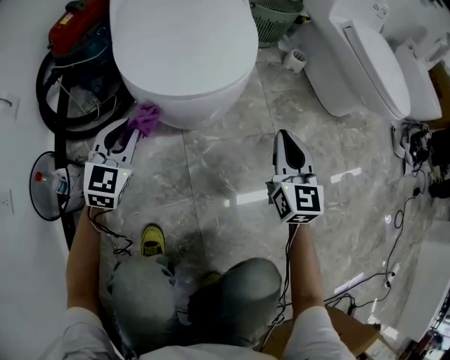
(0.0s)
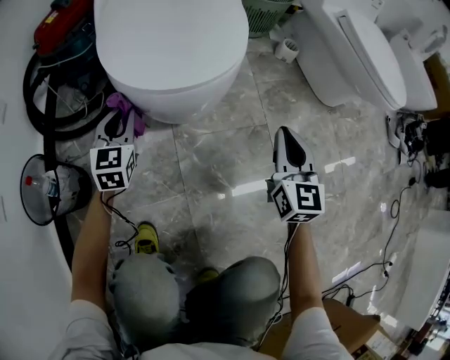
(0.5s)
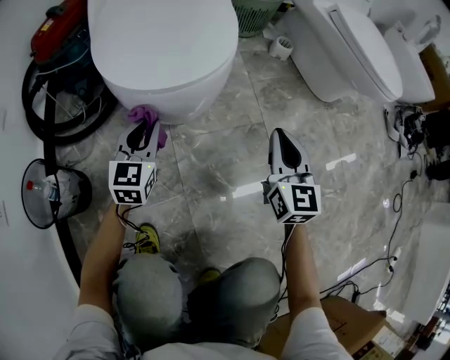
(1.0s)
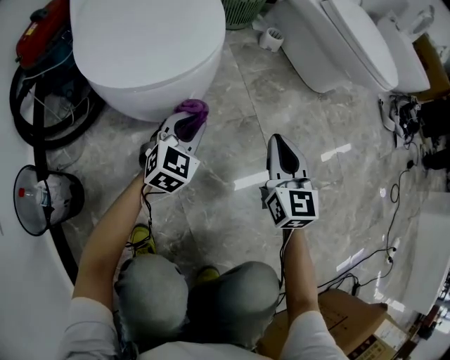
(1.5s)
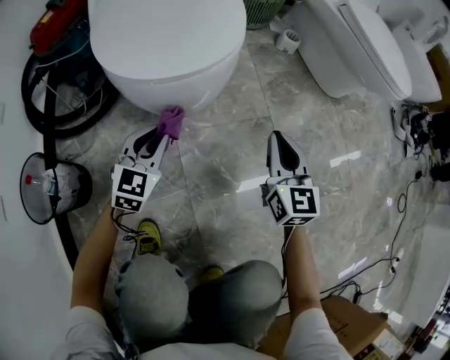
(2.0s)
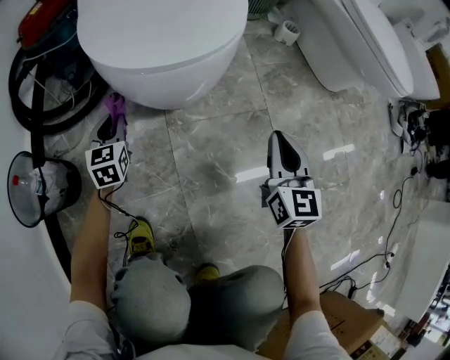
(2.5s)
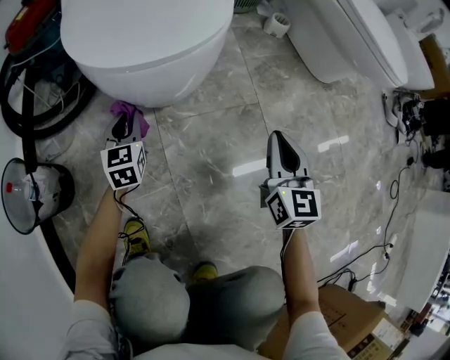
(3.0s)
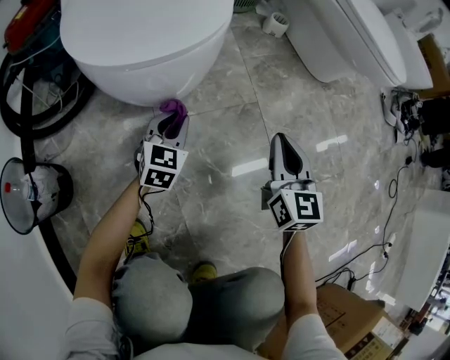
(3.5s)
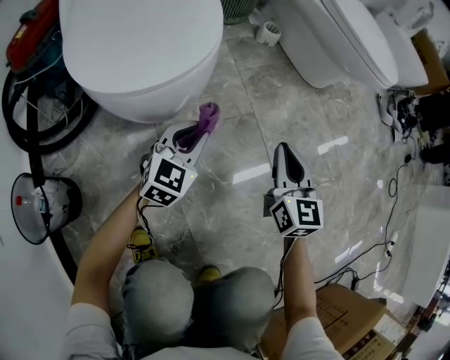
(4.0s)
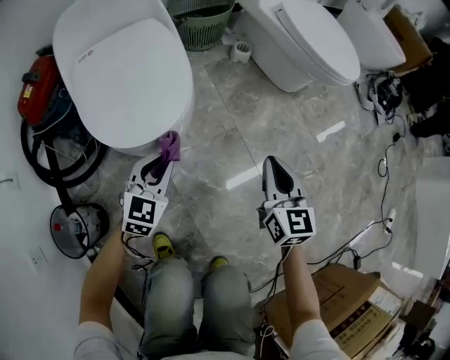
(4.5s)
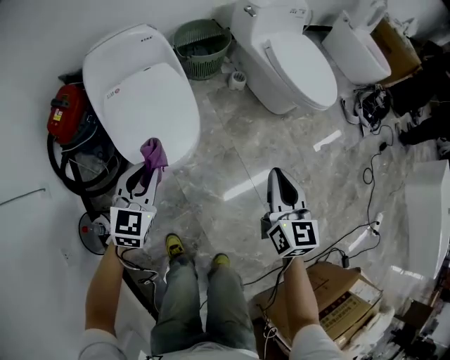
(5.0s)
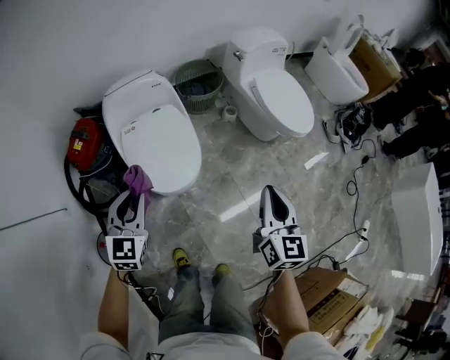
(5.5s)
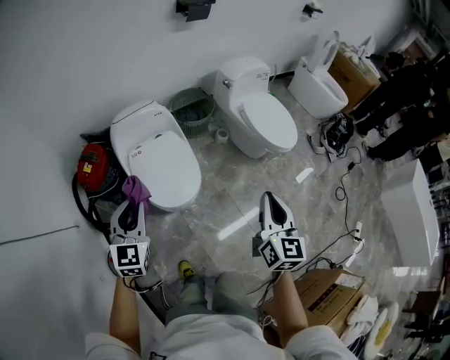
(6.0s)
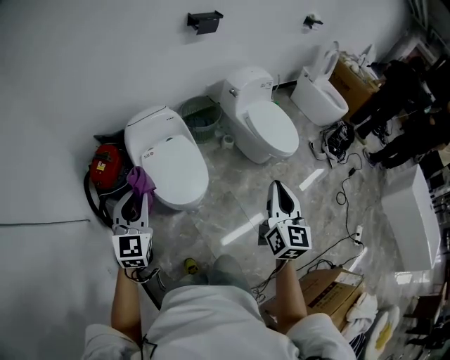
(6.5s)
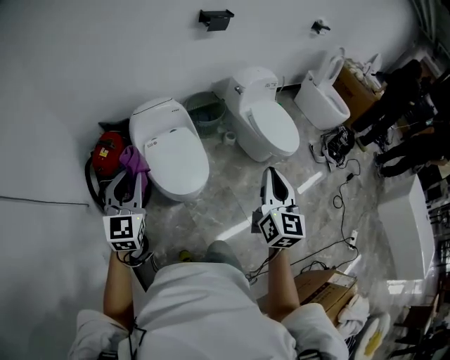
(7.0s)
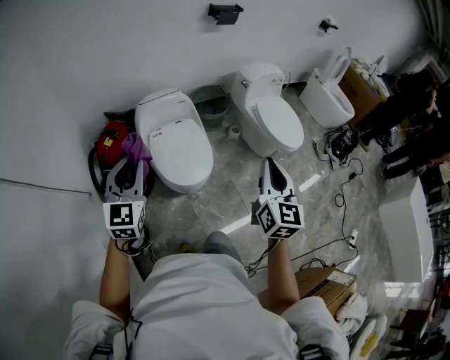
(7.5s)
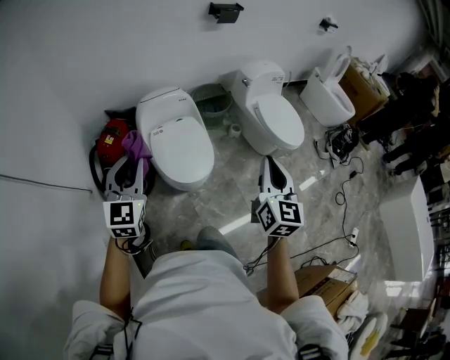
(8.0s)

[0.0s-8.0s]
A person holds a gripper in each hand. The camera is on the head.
0.0s to 2.0s: The right gripper shifts by roughly 5 cm. The left gripper goes some 15 cm to the right and downward.
2.0s to 4.0s: The left gripper goes downward and returns, about 10 cm each way. The right gripper shifts by approximately 5 cm.
4.0s to 6.0s: The two grippers go some 70 cm upward. The left gripper swivels about 20 degrees.
6.0s to 8.0s: The left gripper travels upward, backward and to the left by roughly 15 cm. Meanwhile the right gripper heads upward, to the left and backward, covering approximately 15 cm.

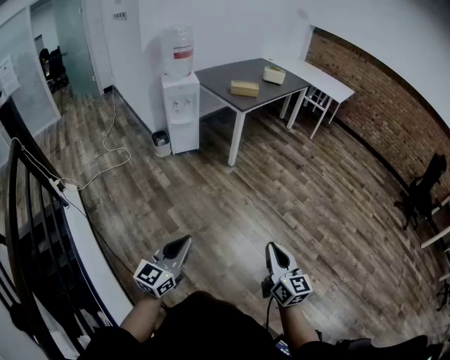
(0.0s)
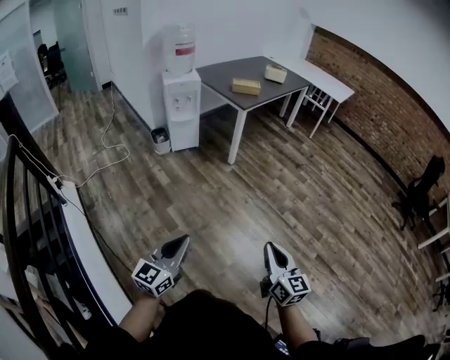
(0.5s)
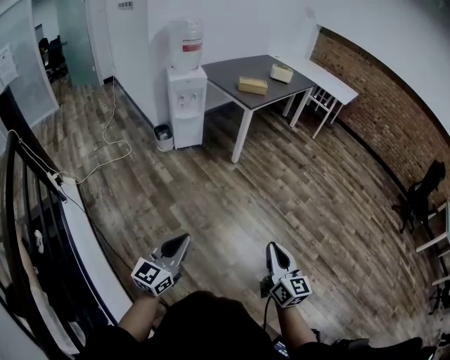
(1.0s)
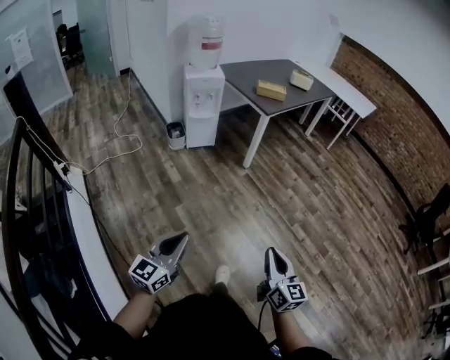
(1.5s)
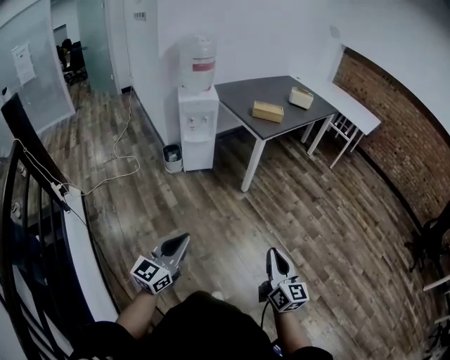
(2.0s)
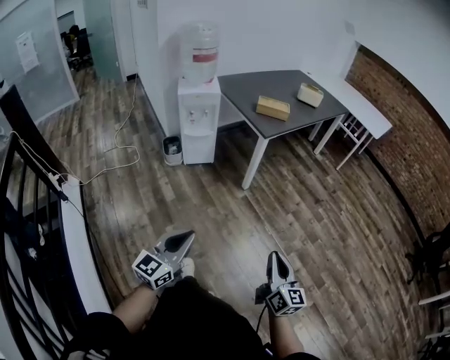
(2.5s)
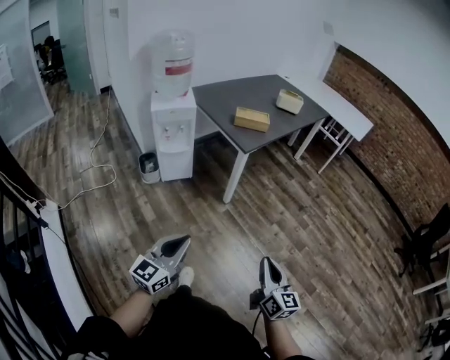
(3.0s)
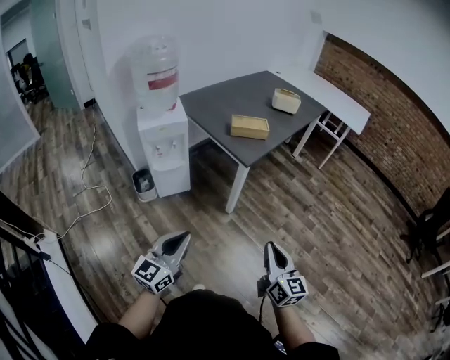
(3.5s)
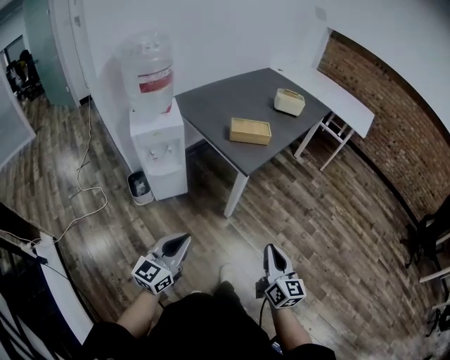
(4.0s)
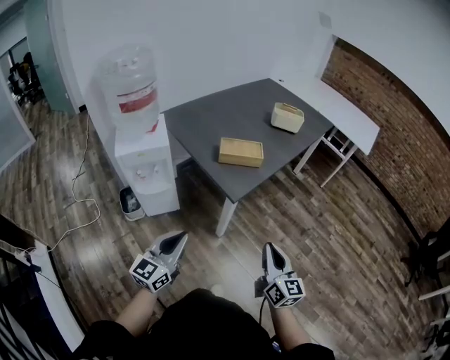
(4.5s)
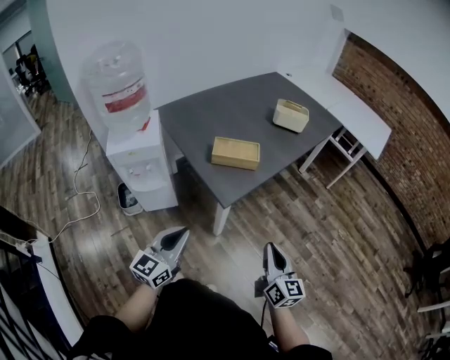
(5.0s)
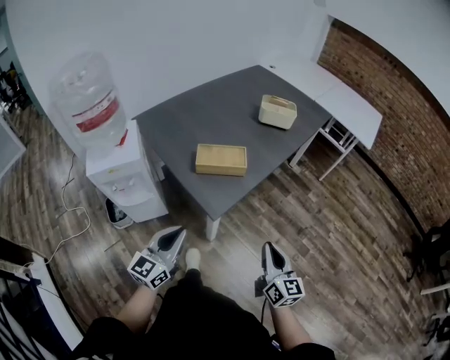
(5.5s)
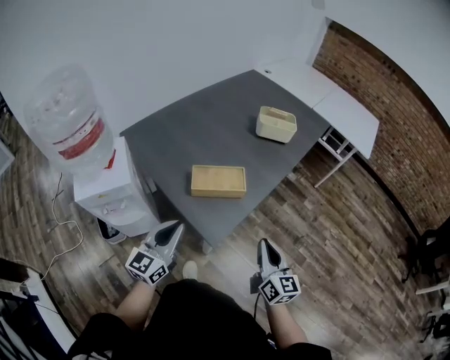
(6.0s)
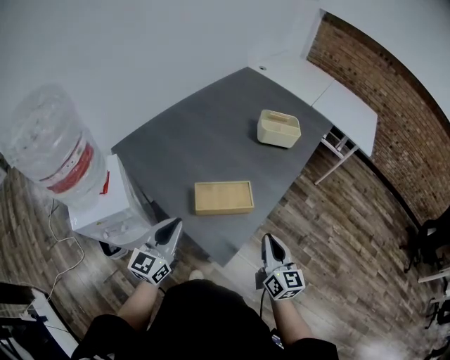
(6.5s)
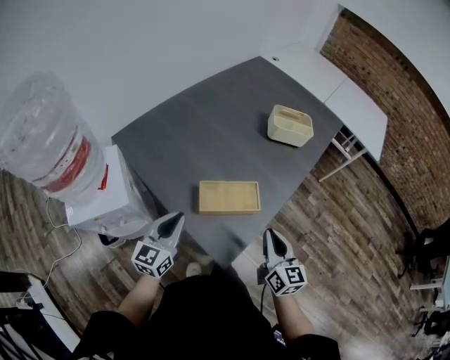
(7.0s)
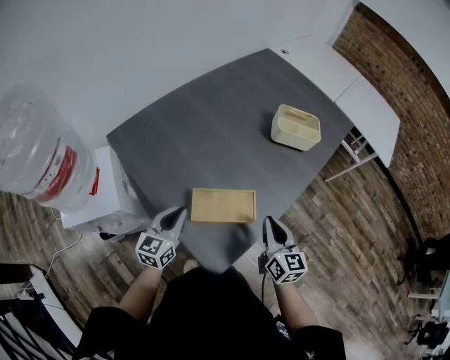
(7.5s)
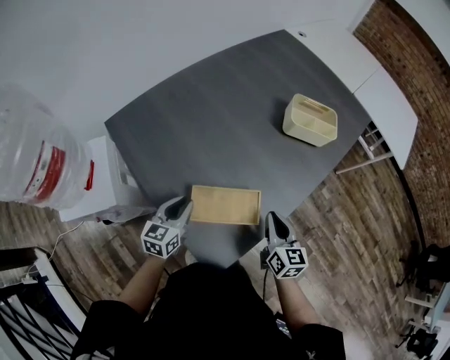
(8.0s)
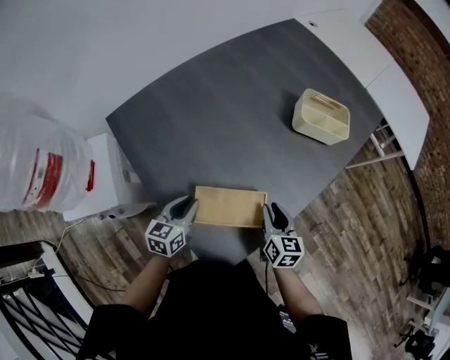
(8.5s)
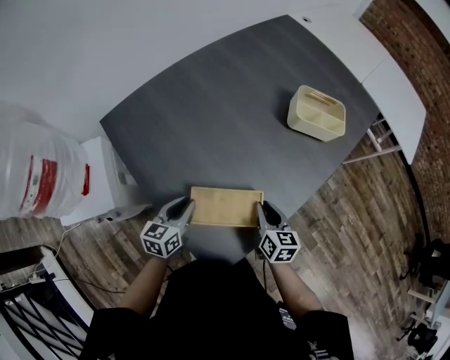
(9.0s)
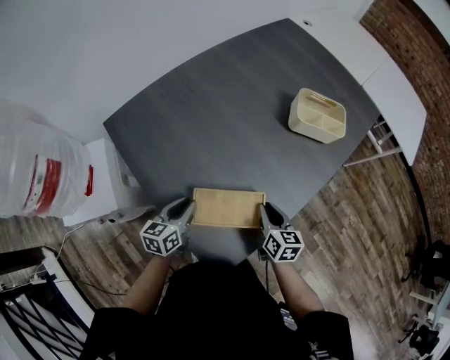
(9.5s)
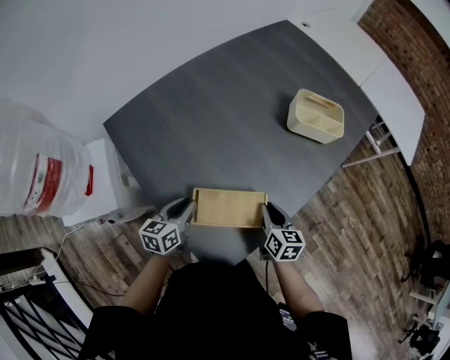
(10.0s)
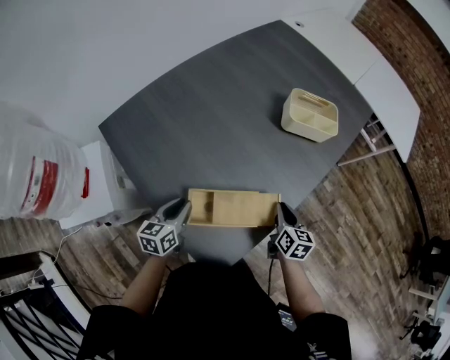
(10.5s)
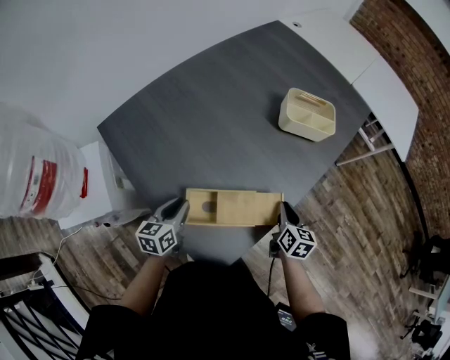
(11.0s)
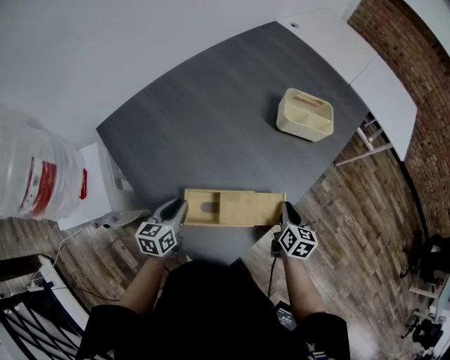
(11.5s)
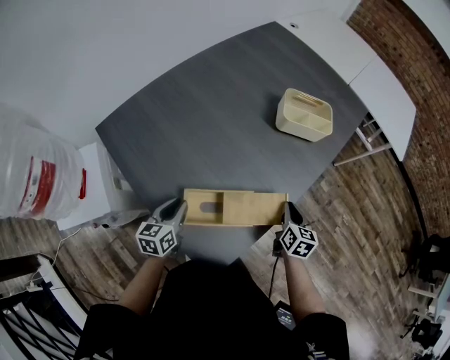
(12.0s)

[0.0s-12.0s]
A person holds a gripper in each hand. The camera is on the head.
0.0s to 2.0s: Both grippers move forward, roughly 20 cm.
2.0s to 4.0s: Both grippers move forward, approximately 35 cm.
4.0s to 6.0s: The two grippers go some 35 cm forward.
6.0s to 8.0s: The left gripper travels forward and downward by roughly 25 cm, and changes its angle by approximately 30 degrees. The right gripper is displaced forward by approximately 20 cm.
8.0s to 10.0s: The right gripper shifts some 5 cm downward.
10.0s to 12.0s: The right gripper goes about 10 cm to the right.

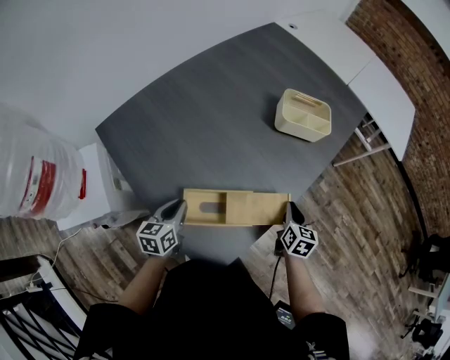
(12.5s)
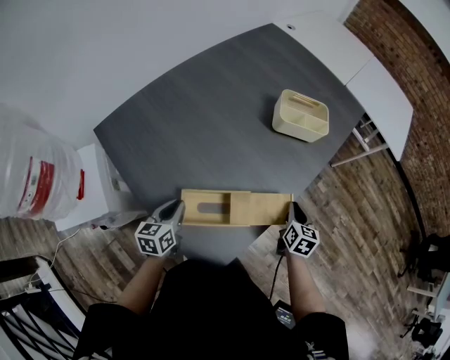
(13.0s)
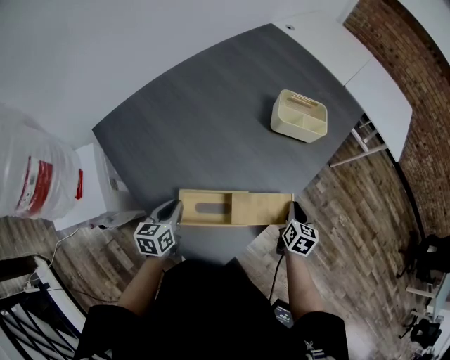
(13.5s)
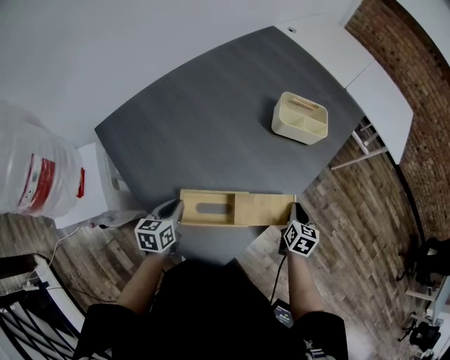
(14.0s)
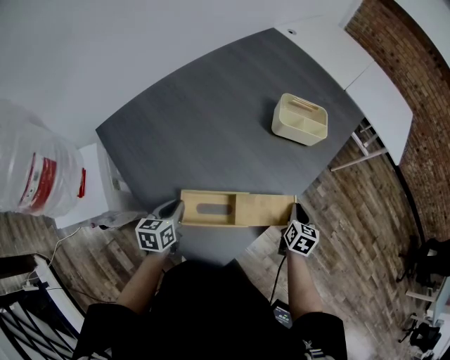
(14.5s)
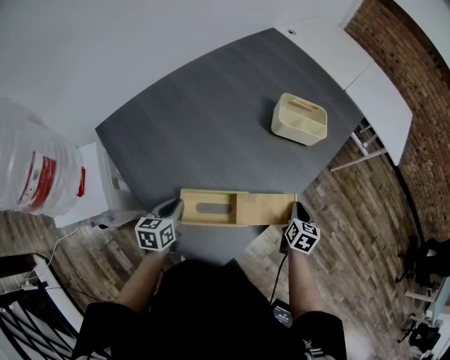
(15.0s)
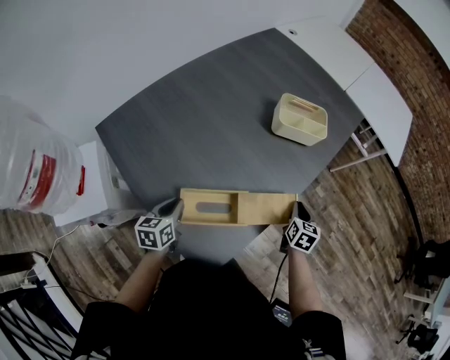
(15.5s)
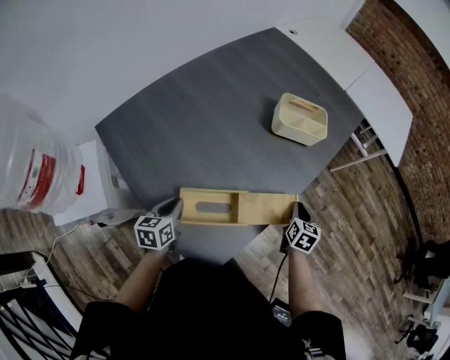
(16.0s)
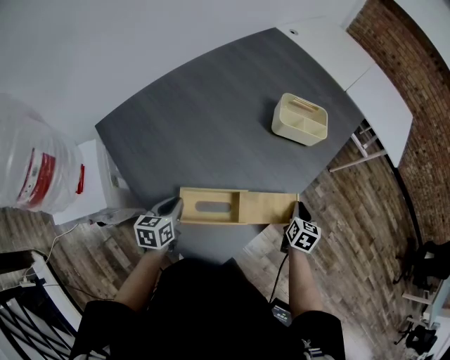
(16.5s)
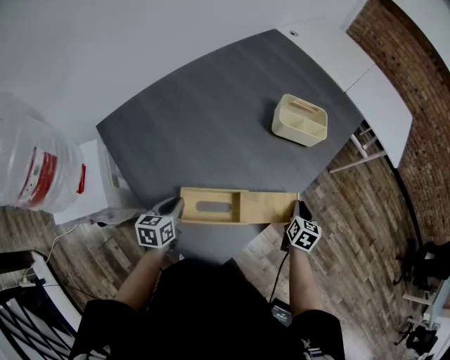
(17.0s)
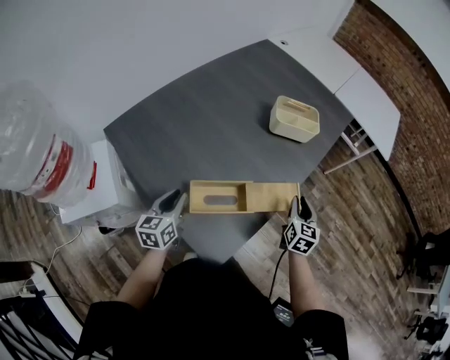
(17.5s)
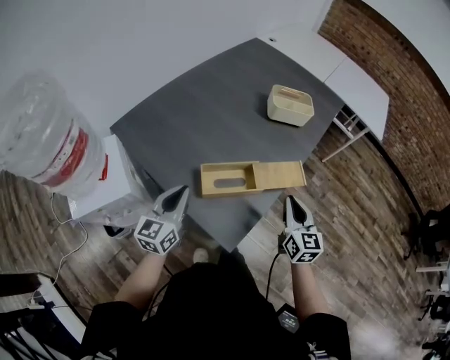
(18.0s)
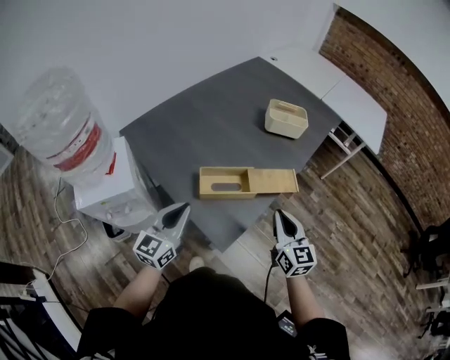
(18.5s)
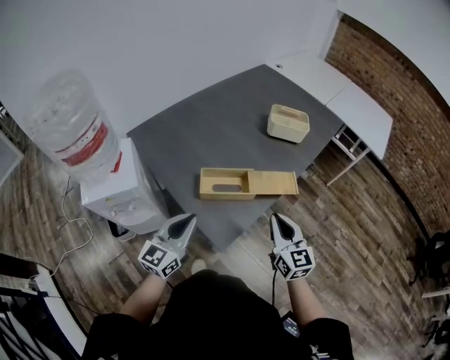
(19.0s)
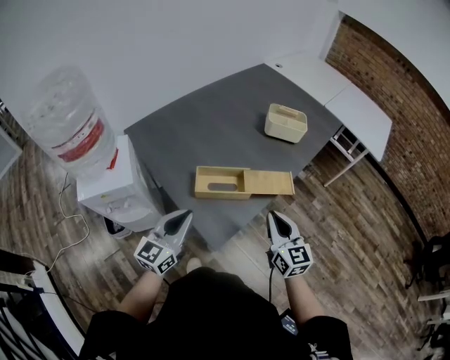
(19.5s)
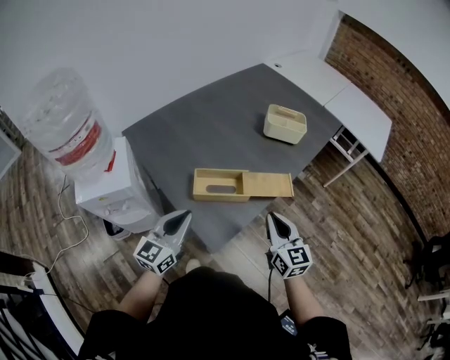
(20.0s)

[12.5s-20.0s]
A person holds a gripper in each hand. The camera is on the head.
12.5s to 16.5s: The grippers move only a little.
16.5s to 18.0s: The left gripper travels upward and backward by approximately 15 cm, and turns by about 30 degrees. Meanwhile the right gripper goes roughly 25 cm backward, upward and to the left, and changes its angle by approximately 30 degrees.
18.0s to 20.0s: The left gripper is displaced backward and to the right by roughly 10 cm. The right gripper moves roughly 5 cm.
